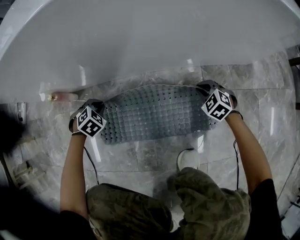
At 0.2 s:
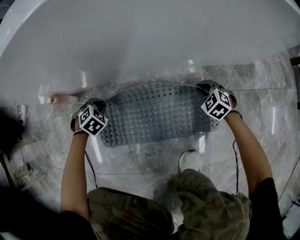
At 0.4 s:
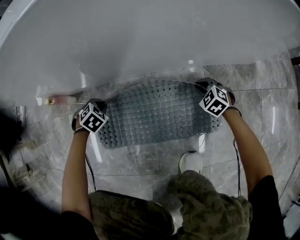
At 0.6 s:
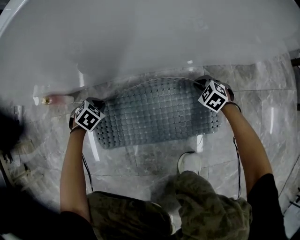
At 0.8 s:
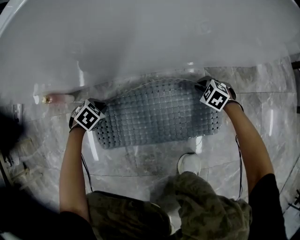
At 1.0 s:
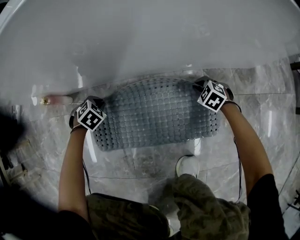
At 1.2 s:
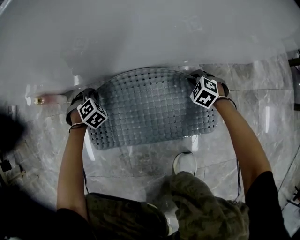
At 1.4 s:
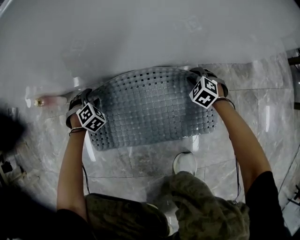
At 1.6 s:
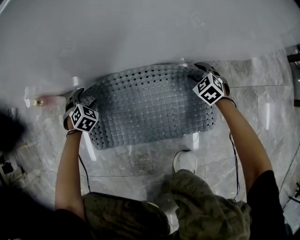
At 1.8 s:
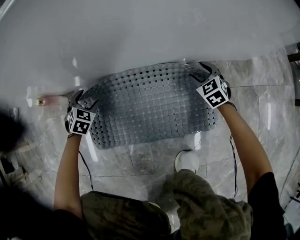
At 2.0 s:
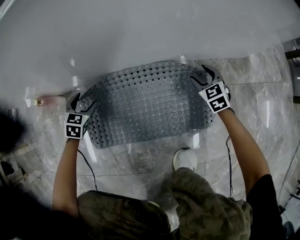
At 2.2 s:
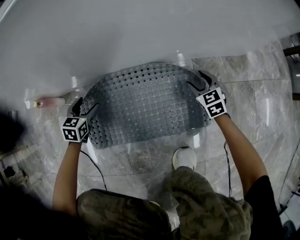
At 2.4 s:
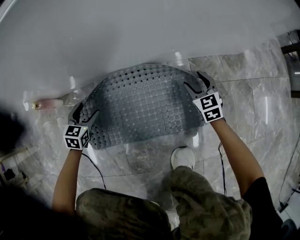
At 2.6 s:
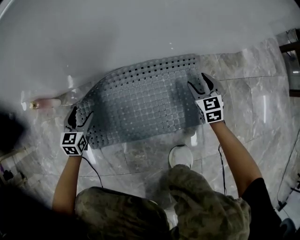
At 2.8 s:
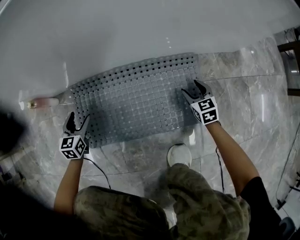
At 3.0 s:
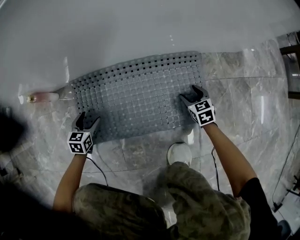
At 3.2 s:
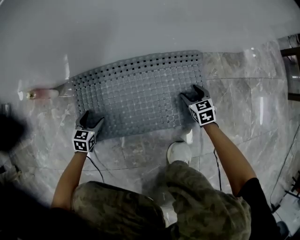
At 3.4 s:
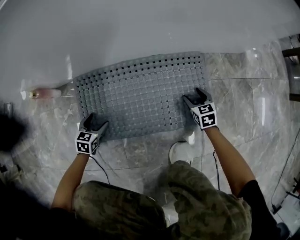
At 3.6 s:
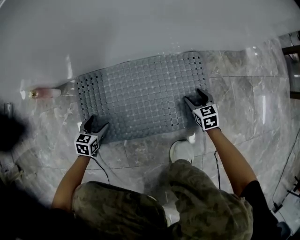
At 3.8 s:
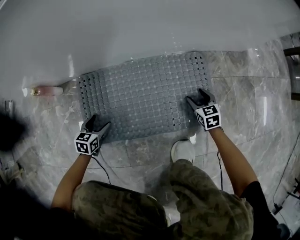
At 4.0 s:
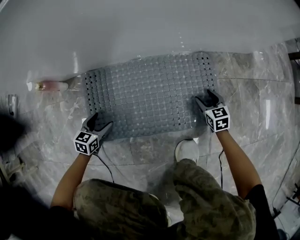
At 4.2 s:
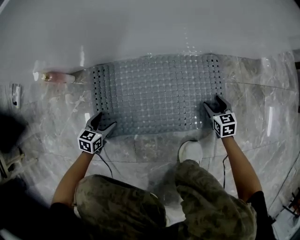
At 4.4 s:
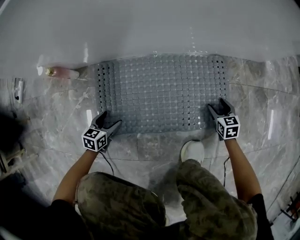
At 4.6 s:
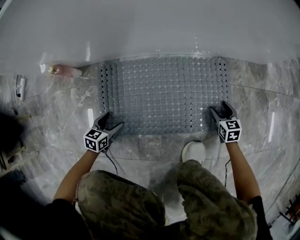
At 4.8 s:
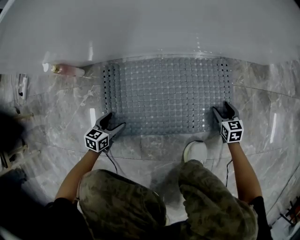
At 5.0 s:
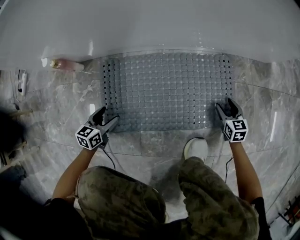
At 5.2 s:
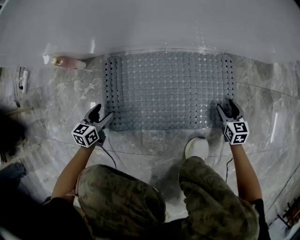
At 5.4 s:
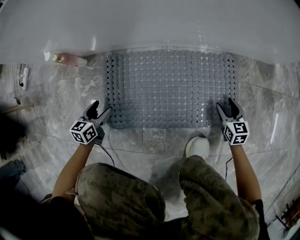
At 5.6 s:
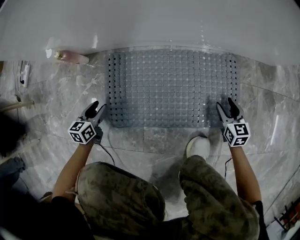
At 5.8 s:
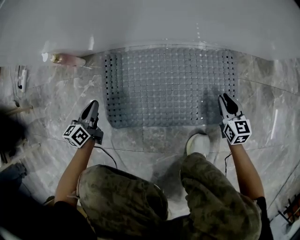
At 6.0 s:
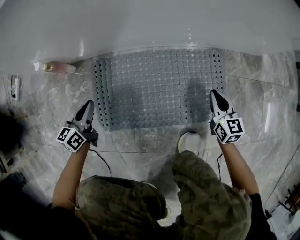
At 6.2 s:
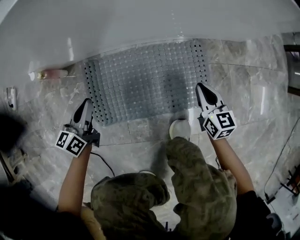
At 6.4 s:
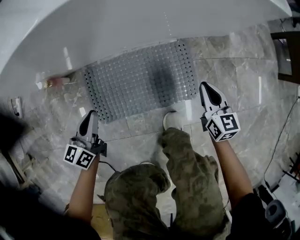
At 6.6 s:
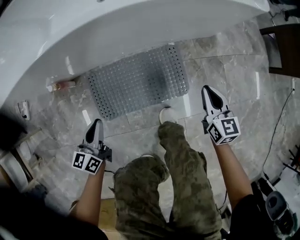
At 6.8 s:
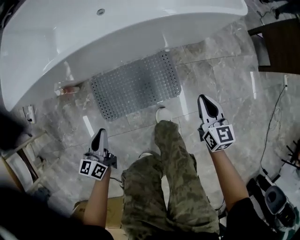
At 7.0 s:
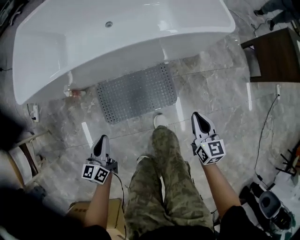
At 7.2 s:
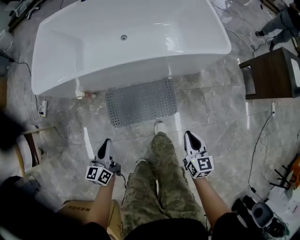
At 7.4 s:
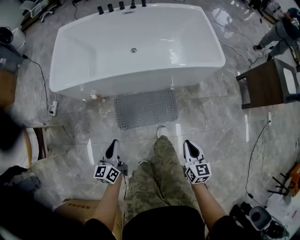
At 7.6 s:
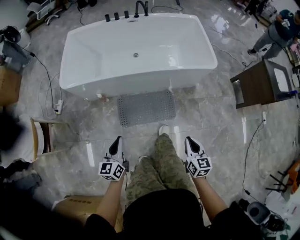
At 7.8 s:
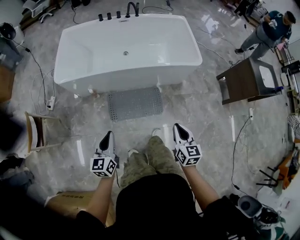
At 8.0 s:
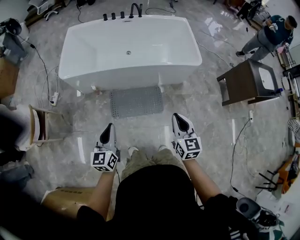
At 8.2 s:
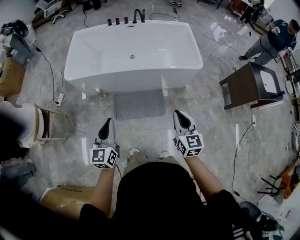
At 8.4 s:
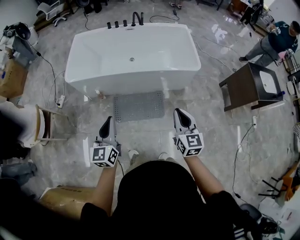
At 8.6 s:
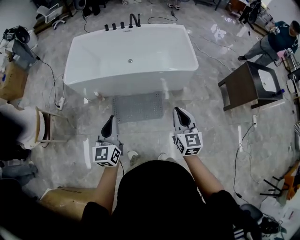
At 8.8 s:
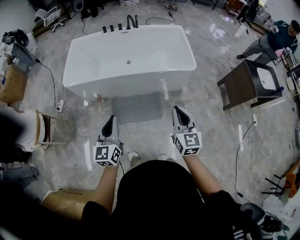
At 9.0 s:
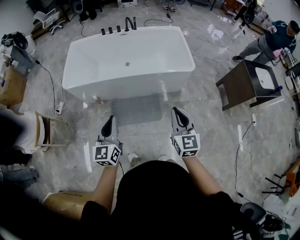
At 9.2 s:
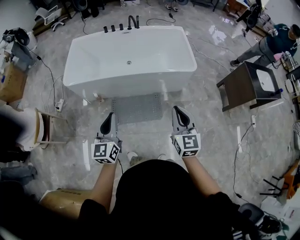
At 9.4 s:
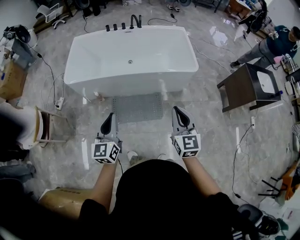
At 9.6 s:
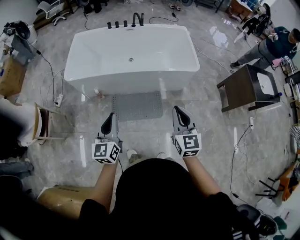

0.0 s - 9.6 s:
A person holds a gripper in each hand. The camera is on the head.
0.0 s - 1.6 s: The right gripper moves roughly 10 cm, and opens. The left gripper ends up some 10 cm from where it was, and opens.
1.6 s - 3.2 s: Both grippers travel together backward, approximately 15 cm. The right gripper changes its angle by roughly 30 degrees. Meanwhile the left gripper turns by approximately 40 degrees.
3.2 s - 4.8 s: The right gripper heads backward, covering some 5 cm. The left gripper heads backward, covering some 10 cm.
4.8 s - 6.4 s: The two grippers go approximately 35 cm upward. The right gripper rotates roughly 20 degrees, and closes. The left gripper changes its angle by about 30 degrees, and closes.
6.4 s - 8.0 s: The right gripper goes roughly 70 cm upward; the left gripper is displaced upward and backward by some 70 cm, and rotates approximately 20 degrees.
8.0 s - 9.6 s: The two grippers go roughly 10 cm upward.

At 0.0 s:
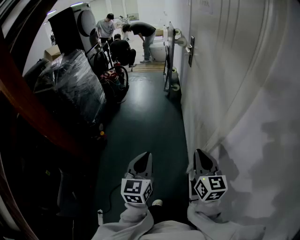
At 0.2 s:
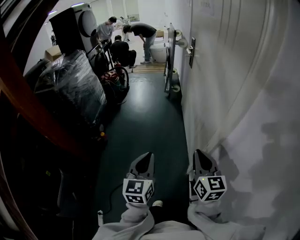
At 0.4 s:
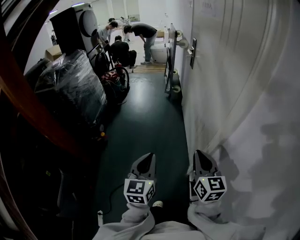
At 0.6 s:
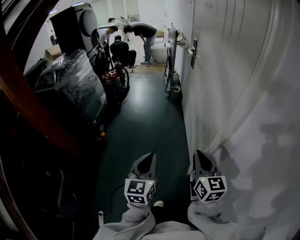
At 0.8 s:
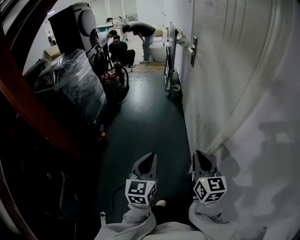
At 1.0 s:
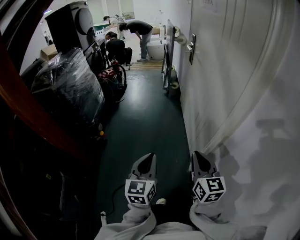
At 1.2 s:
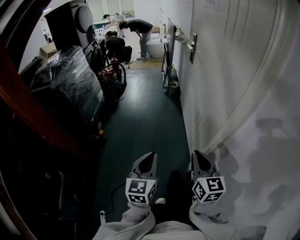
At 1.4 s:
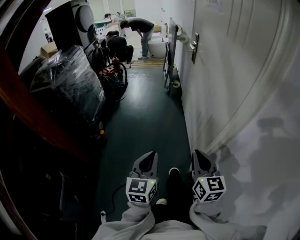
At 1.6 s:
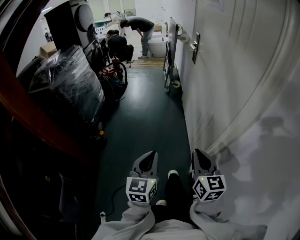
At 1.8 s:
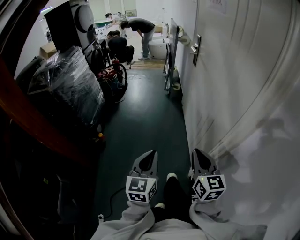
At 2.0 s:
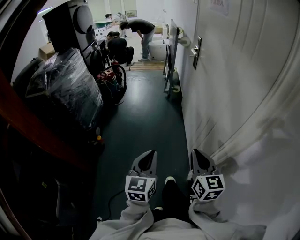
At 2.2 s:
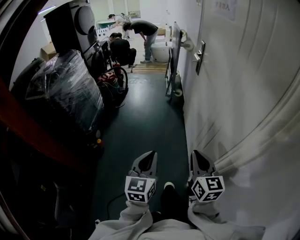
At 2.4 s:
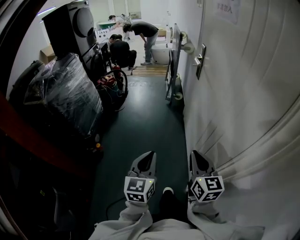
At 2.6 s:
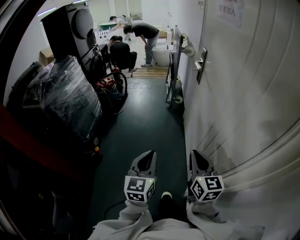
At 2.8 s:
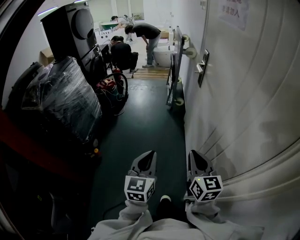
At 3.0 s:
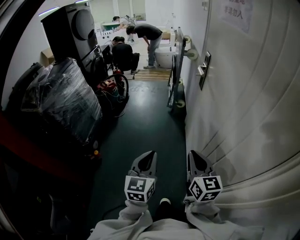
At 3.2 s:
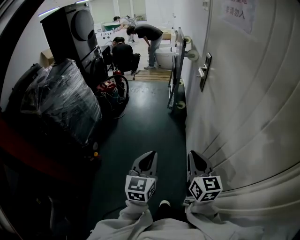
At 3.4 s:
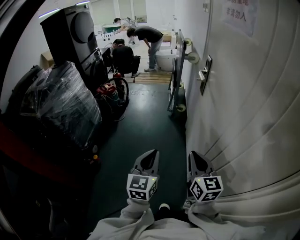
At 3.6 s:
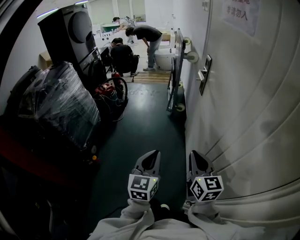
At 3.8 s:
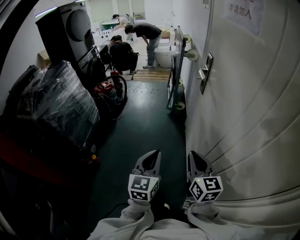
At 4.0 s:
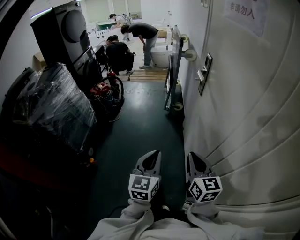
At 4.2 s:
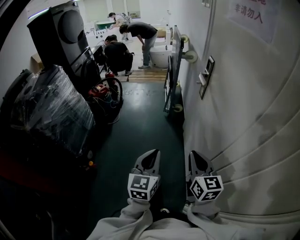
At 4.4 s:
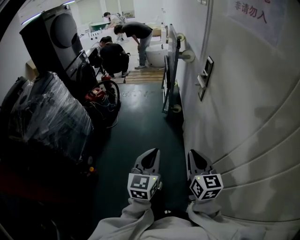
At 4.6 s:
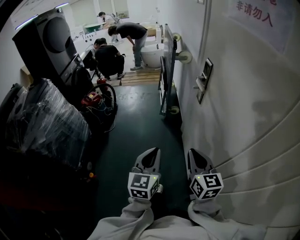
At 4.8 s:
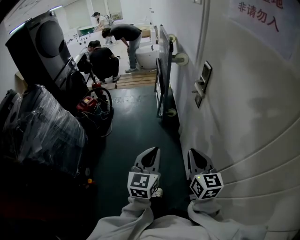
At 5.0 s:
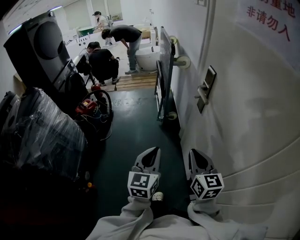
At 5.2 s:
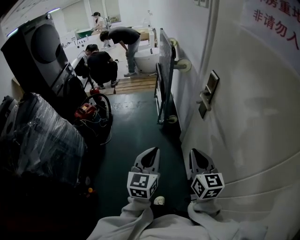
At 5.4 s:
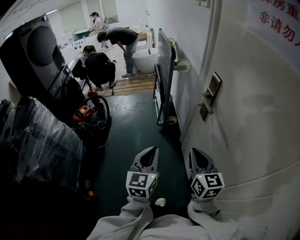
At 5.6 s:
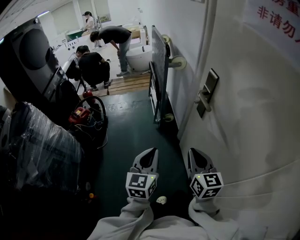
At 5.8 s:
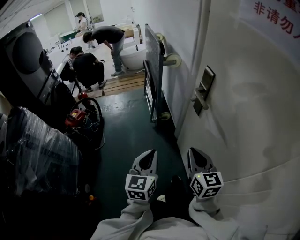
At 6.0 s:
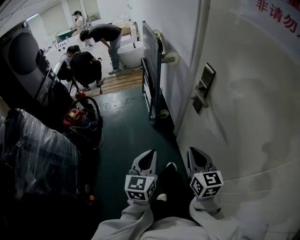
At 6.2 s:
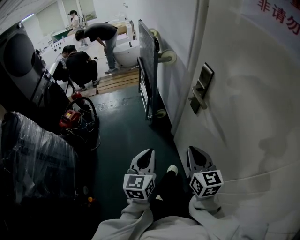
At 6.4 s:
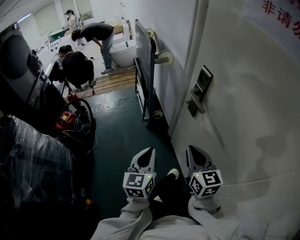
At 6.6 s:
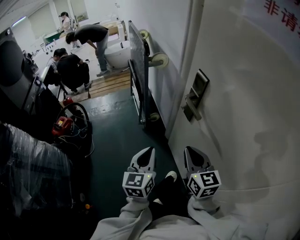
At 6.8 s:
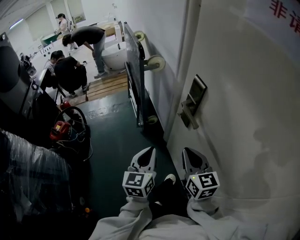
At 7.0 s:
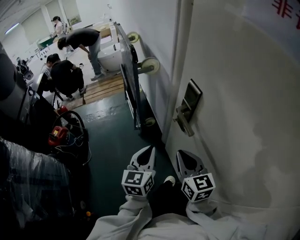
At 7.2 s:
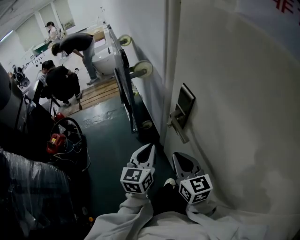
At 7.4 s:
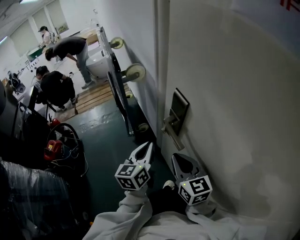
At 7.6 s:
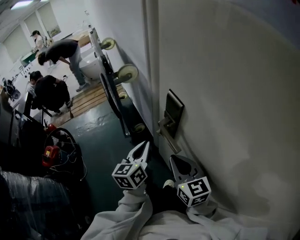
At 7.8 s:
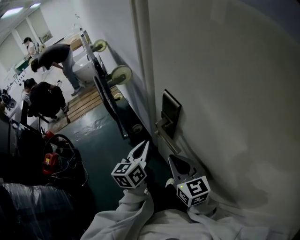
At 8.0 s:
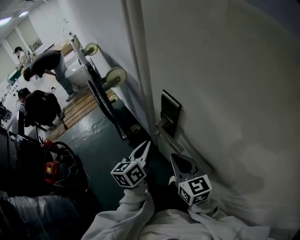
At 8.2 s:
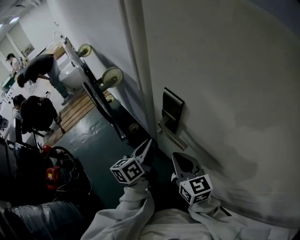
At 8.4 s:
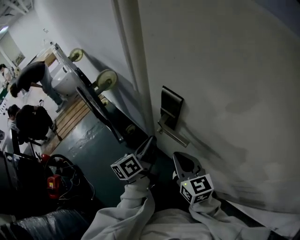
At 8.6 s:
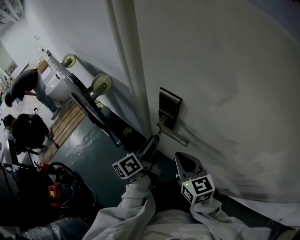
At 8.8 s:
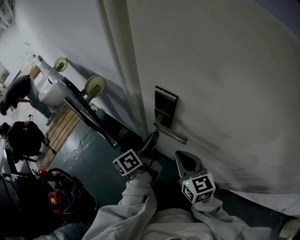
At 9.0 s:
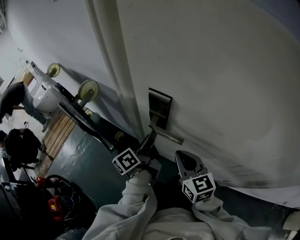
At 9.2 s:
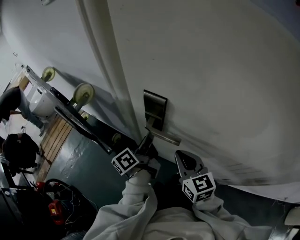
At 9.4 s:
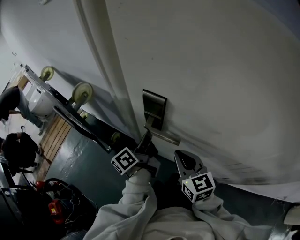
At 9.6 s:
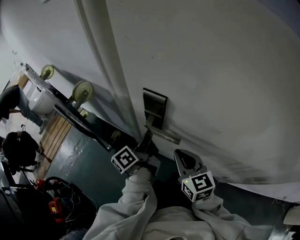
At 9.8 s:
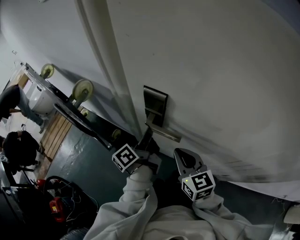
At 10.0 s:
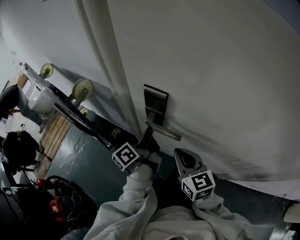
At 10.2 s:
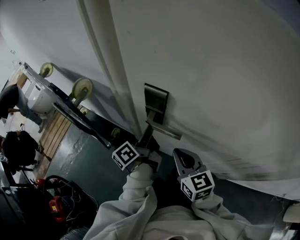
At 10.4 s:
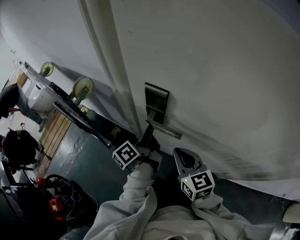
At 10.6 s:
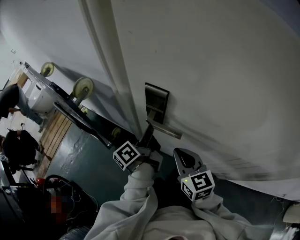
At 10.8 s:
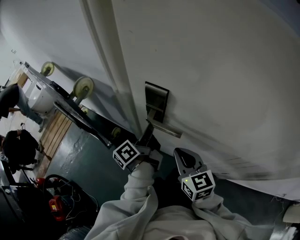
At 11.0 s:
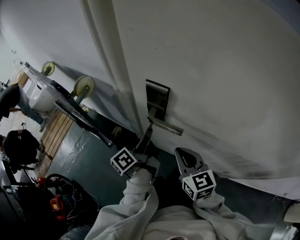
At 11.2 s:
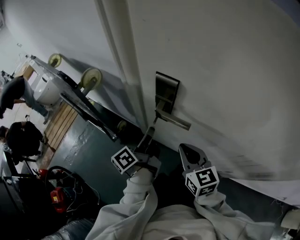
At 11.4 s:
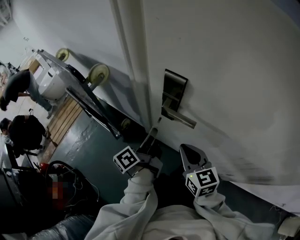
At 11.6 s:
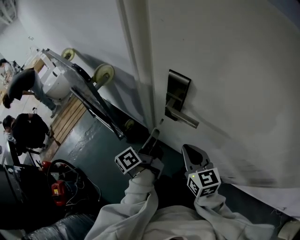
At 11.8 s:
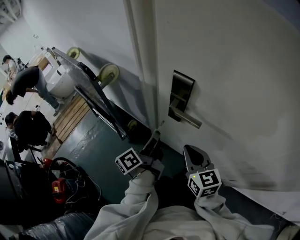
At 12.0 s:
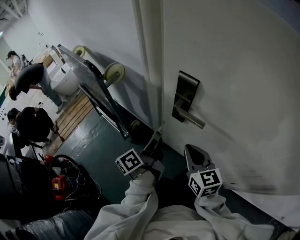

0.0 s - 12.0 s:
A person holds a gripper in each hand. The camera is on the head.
0.0 s - 1.6 s: The left gripper changes place by roughly 5 cm, while the right gripper heads to the left, covering about 5 cm.
1.6 s - 3.0 s: The grippers both shift forward by roughly 30 cm.
3.0 s - 4.4 s: Both grippers move forward, about 20 cm.
4.4 s - 6.0 s: The grippers both shift forward by about 20 cm.
6.0 s - 7.6 s: The left gripper goes approximately 30 cm forward and to the right, and swivels roughly 20 degrees, while the right gripper moves forward, approximately 20 cm.
7.6 s - 9.0 s: The right gripper rotates approximately 30 degrees. Meanwhile the left gripper shifts by about 5 cm, turns by approximately 60 degrees, and opens its fingers.
9.0 s - 10.4 s: The left gripper closes its fingers.
10.4 s - 12.0 s: The left gripper is displaced backward and to the left by roughly 10 cm.

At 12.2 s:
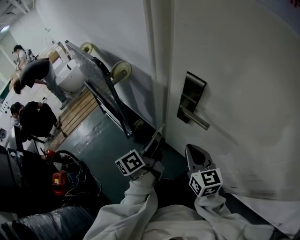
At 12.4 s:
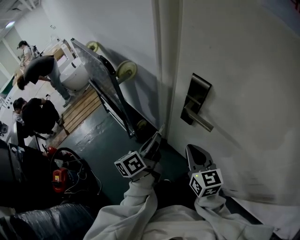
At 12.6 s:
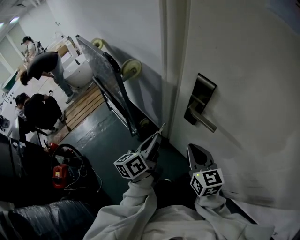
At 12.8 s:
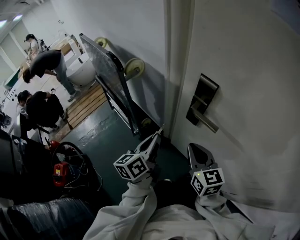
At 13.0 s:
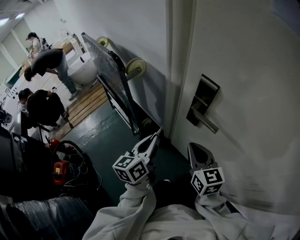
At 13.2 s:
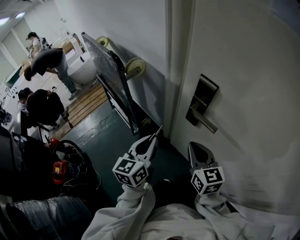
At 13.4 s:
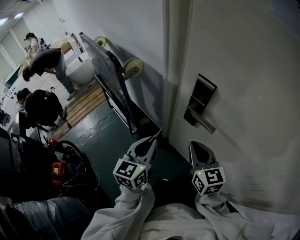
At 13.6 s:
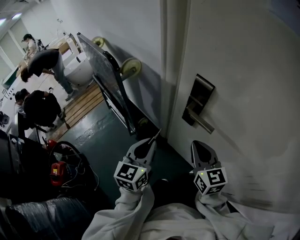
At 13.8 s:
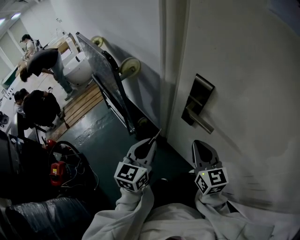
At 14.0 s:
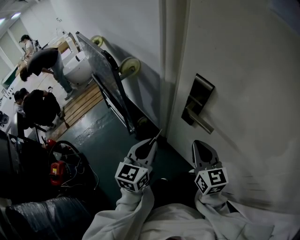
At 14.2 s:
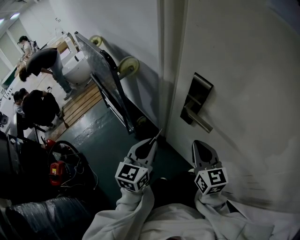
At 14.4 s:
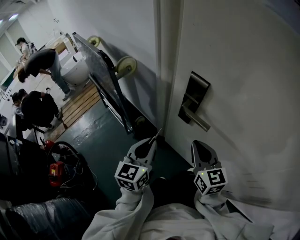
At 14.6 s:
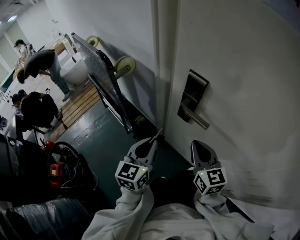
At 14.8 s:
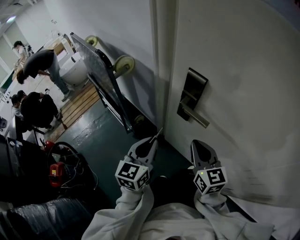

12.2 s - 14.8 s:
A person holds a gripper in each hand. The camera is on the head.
12.2 s - 13.4 s: The left gripper moves about 5 cm, and rotates around the line of its fingers by some 50 degrees, clockwise from behind.
13.4 s - 14.8 s: The grippers move only a little.
